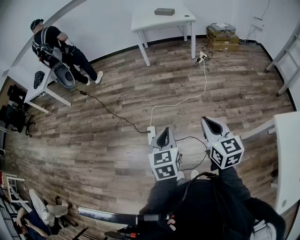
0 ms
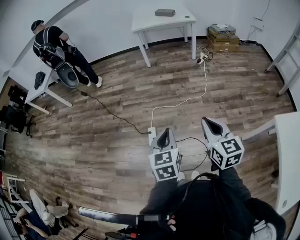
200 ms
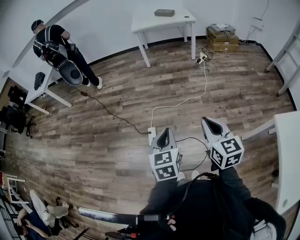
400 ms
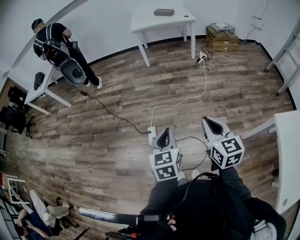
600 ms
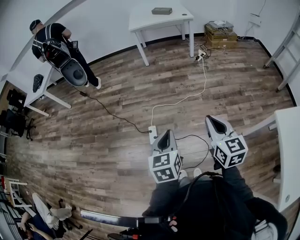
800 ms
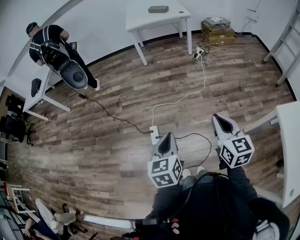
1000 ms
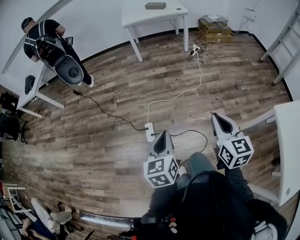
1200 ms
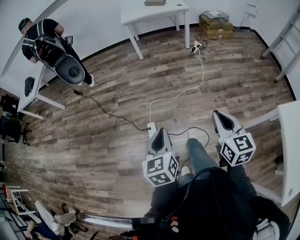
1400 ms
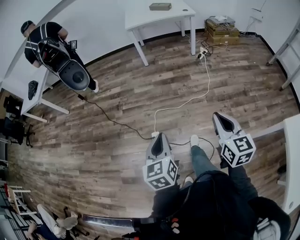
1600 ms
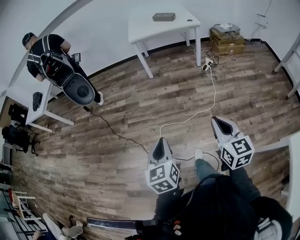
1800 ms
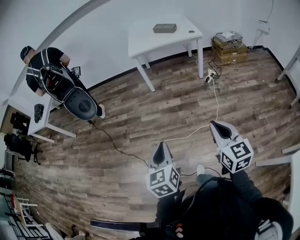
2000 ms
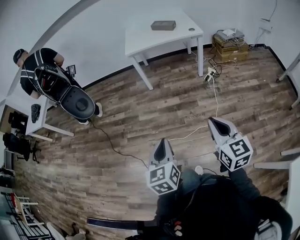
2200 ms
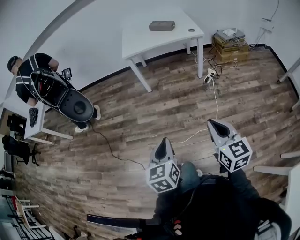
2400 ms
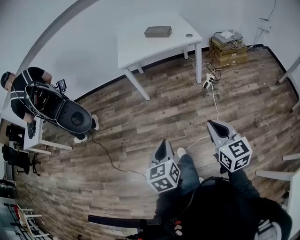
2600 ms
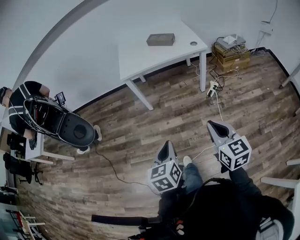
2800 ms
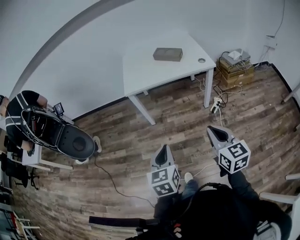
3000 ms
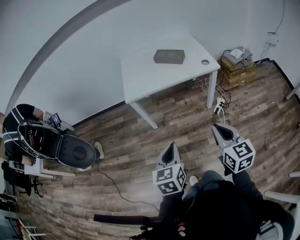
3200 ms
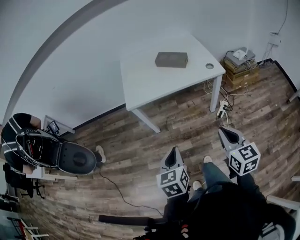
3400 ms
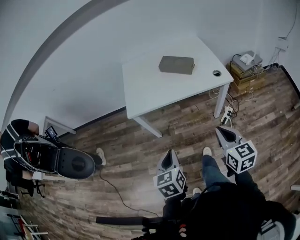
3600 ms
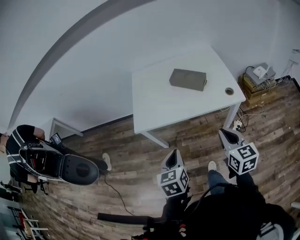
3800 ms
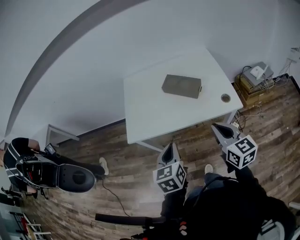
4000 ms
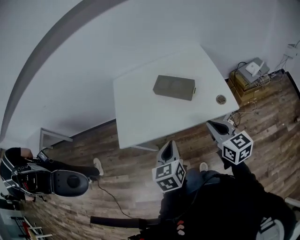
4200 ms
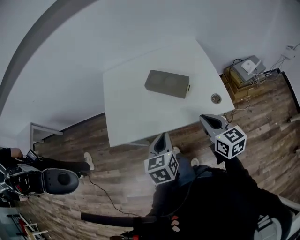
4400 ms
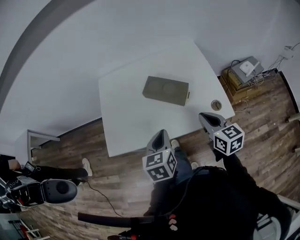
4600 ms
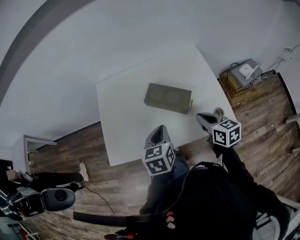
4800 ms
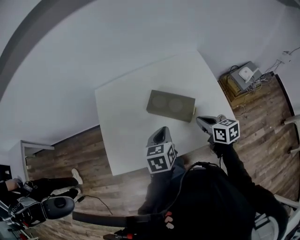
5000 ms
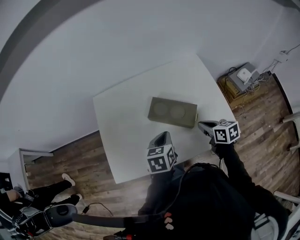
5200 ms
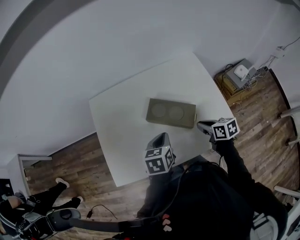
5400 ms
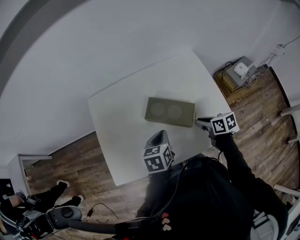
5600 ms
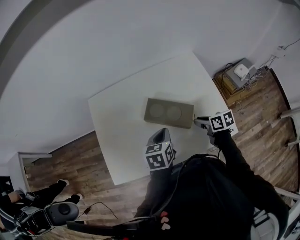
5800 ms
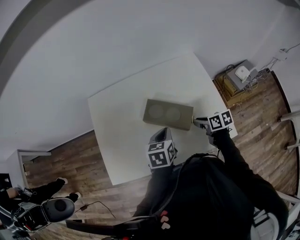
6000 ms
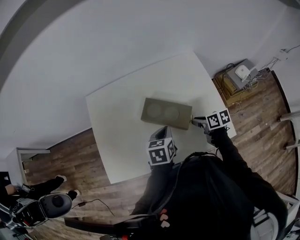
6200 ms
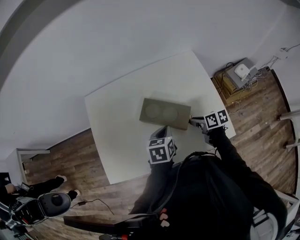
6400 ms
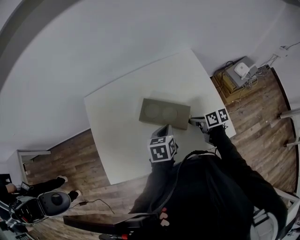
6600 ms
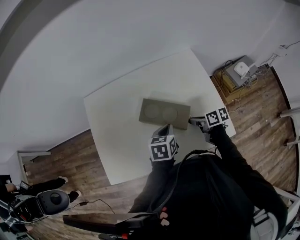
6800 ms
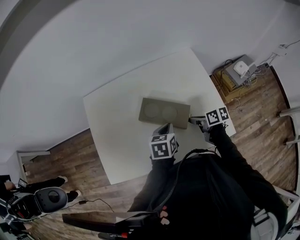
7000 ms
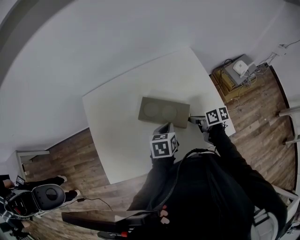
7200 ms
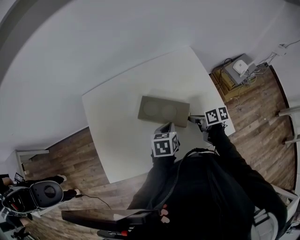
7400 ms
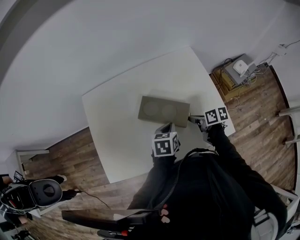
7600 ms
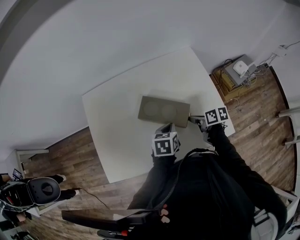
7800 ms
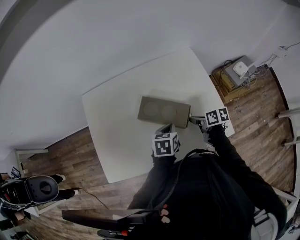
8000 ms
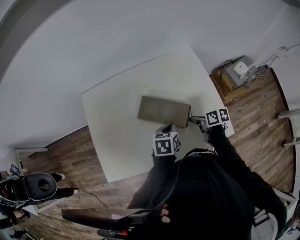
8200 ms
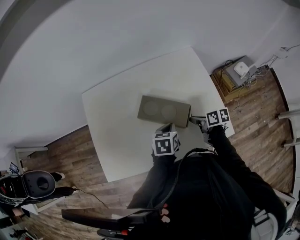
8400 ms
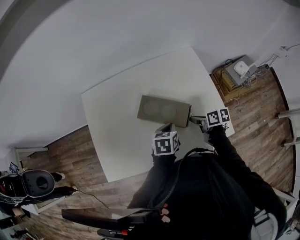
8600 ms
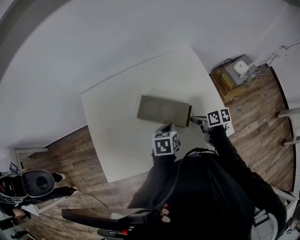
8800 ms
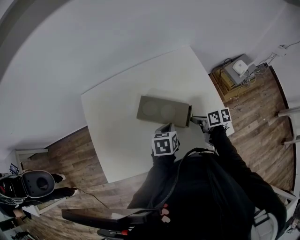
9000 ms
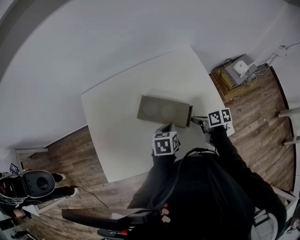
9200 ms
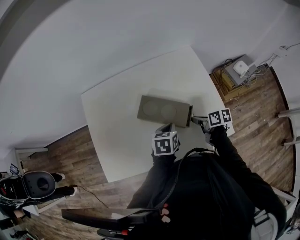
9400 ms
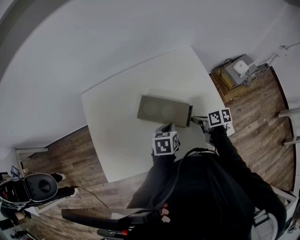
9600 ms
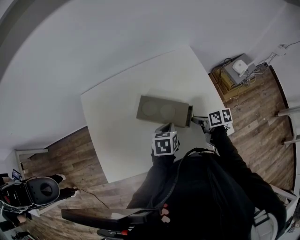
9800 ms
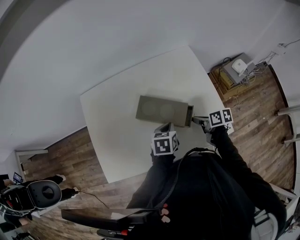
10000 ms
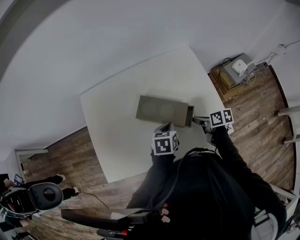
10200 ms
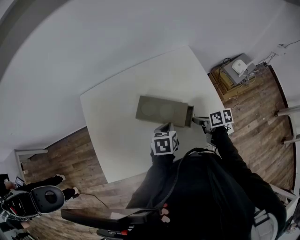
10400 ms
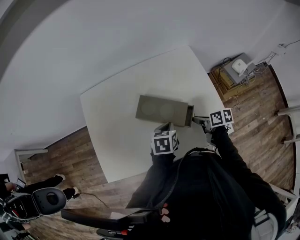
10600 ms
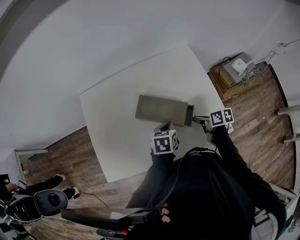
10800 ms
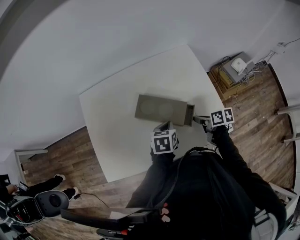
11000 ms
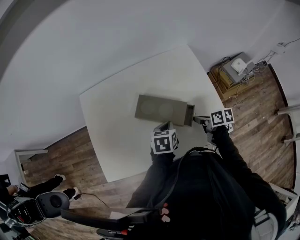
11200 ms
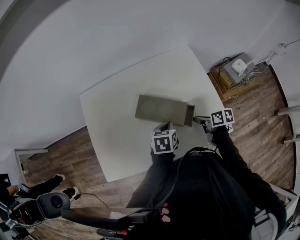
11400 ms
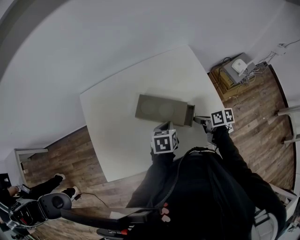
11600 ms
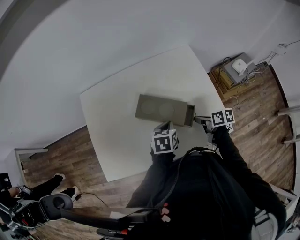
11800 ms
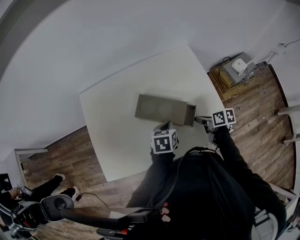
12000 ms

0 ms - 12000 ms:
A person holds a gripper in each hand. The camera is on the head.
0 ms - 1600 ms: The left gripper heads forward and to the left, covering about 15 cm. Meanwhile the right gripper is displaced forward by roughly 15 cm.
1600 ms - 3000 ms: Both grippers are carried forward, about 70 cm.
3000 ms - 4400 ms: The pair of grippers is taken forward, about 60 cm.
4400 ms - 6000 ms: The left gripper moves forward, some 25 cm; the right gripper goes some 25 cm forward and downward, and swivels roughly 40 degrees.
6000 ms - 7600 ms: The left gripper shifts by some 5 cm.
7600 ms - 12000 ms: The grippers stay close to where they were, moving slightly.

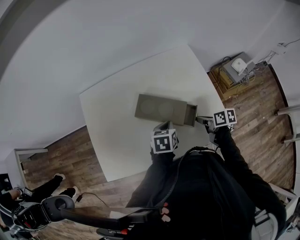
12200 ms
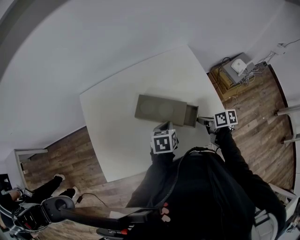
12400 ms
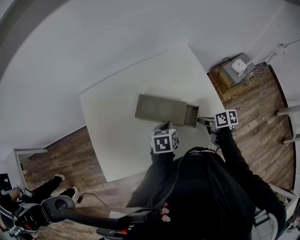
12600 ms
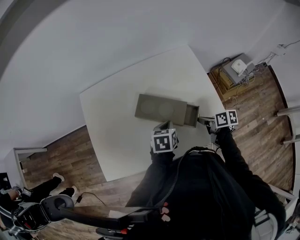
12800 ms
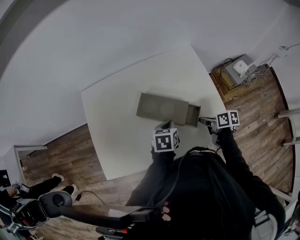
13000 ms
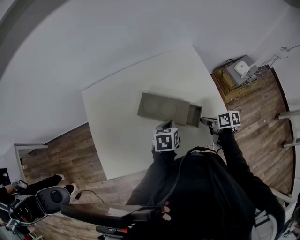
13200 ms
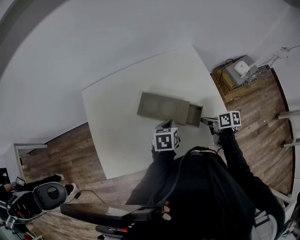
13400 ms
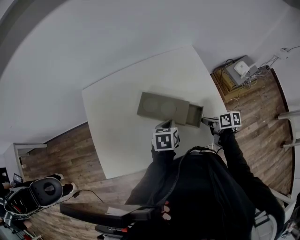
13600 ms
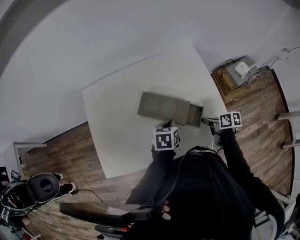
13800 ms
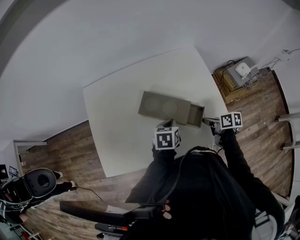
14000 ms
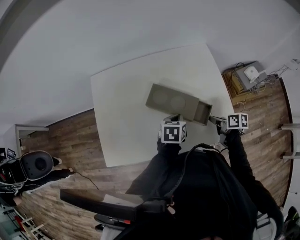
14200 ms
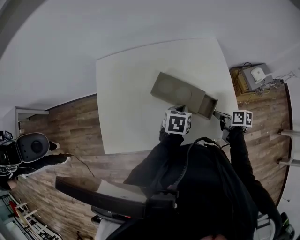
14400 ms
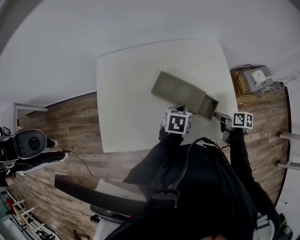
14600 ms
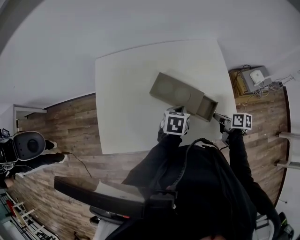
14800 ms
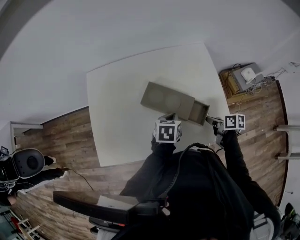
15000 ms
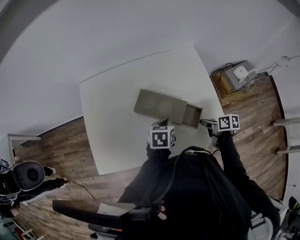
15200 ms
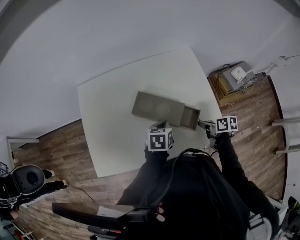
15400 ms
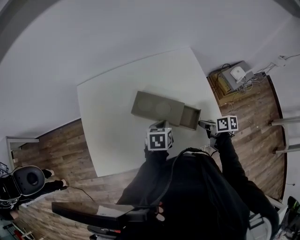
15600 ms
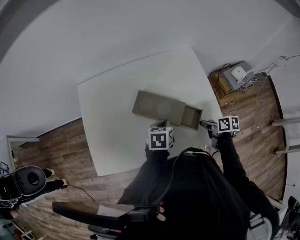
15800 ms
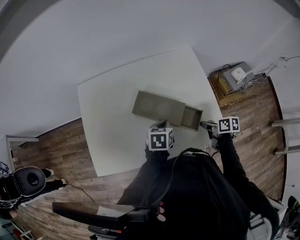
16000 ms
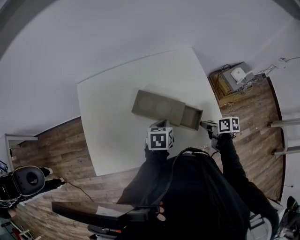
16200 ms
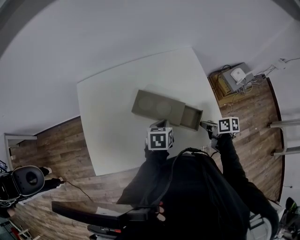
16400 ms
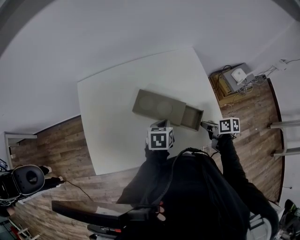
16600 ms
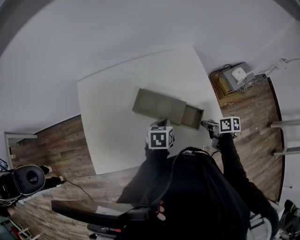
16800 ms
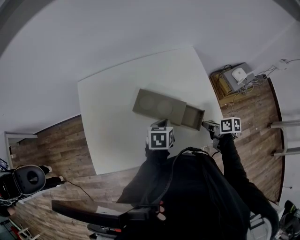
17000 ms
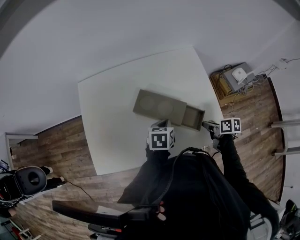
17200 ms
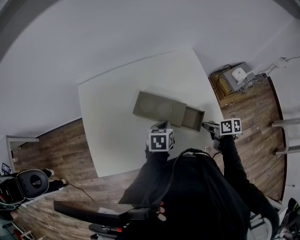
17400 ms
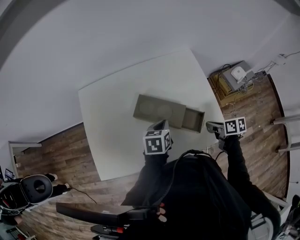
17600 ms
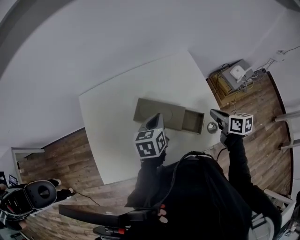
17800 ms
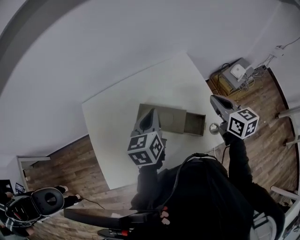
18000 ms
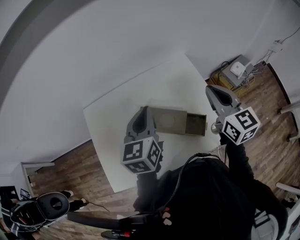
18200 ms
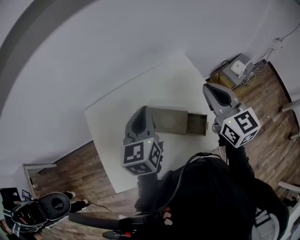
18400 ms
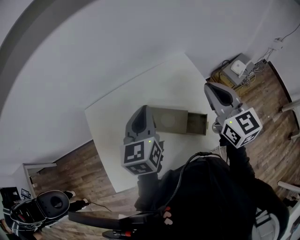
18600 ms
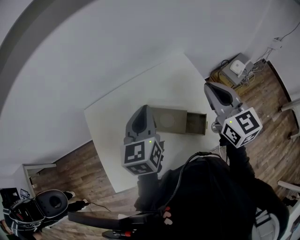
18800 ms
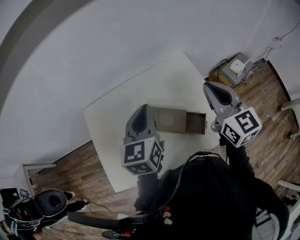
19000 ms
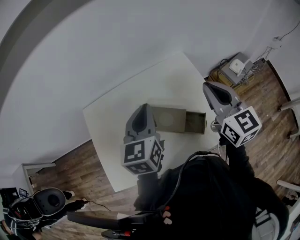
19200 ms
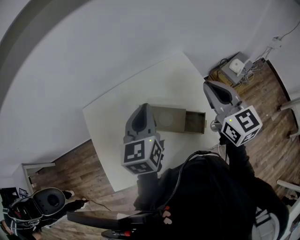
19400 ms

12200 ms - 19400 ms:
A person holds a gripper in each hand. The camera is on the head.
12200 ms - 13600 ms: There are only small adjustments of the grippers.
13600 ms - 15000 ms: Both grippers stay about where they are.
15000 ms - 16600 ms: There are only small adjustments of the grippers.
16600 ms - 18000 ms: Both grippers move upward and forward, about 20 cm. The right gripper changes its angle by approximately 50 degrees, while the left gripper swivels roughly 30 degrees.
18000 ms - 19400 ms: Both grippers move upward, roughly 10 cm. The right gripper changes its angle by roughly 20 degrees.

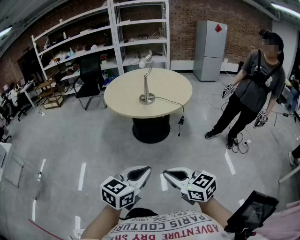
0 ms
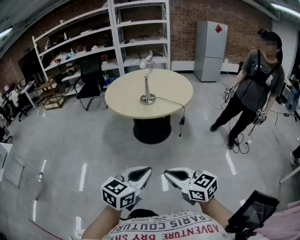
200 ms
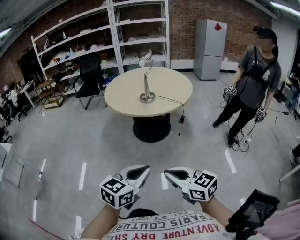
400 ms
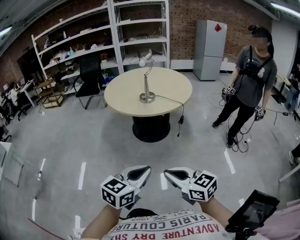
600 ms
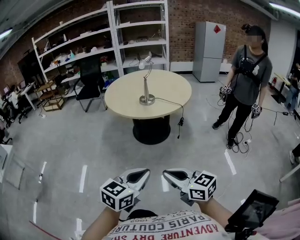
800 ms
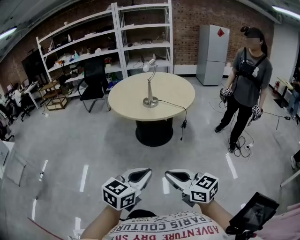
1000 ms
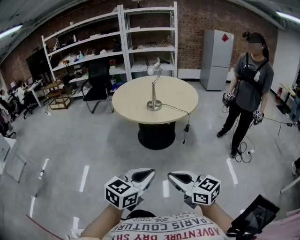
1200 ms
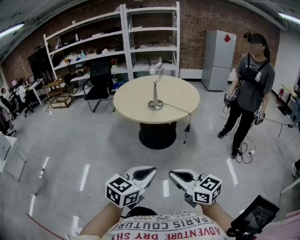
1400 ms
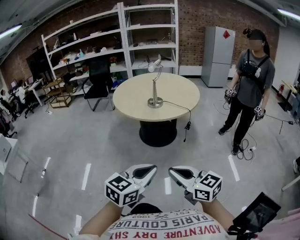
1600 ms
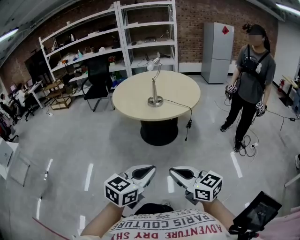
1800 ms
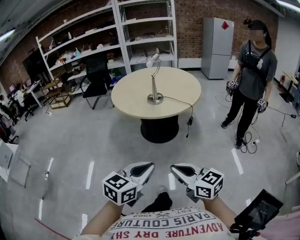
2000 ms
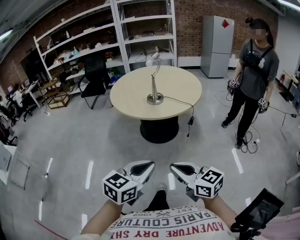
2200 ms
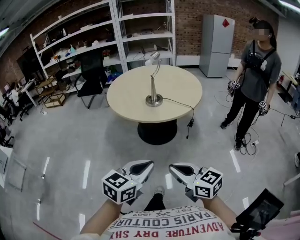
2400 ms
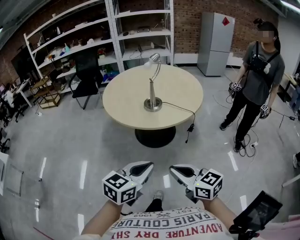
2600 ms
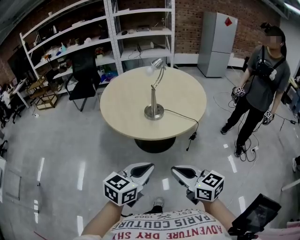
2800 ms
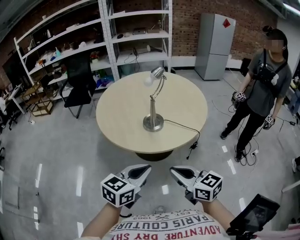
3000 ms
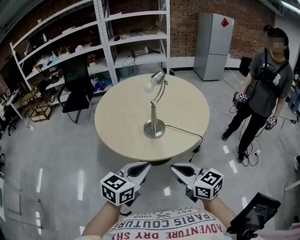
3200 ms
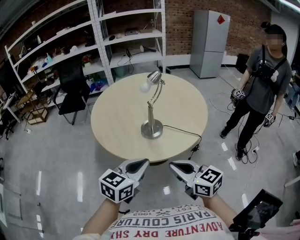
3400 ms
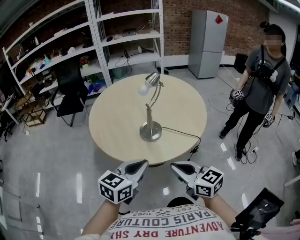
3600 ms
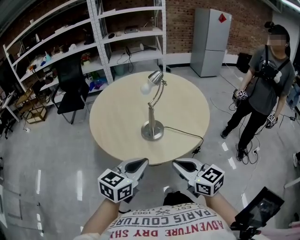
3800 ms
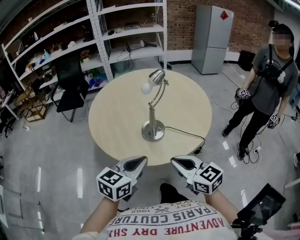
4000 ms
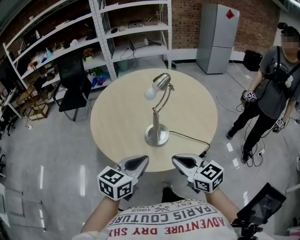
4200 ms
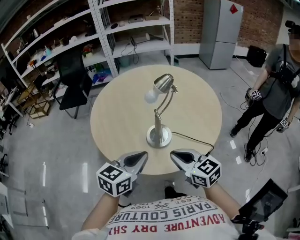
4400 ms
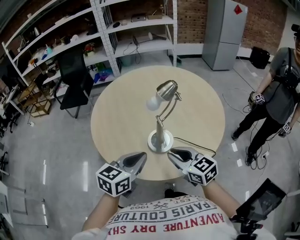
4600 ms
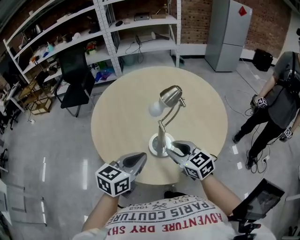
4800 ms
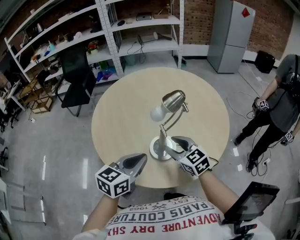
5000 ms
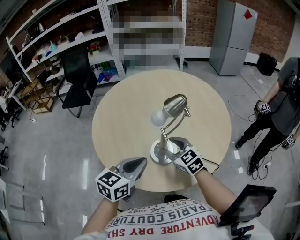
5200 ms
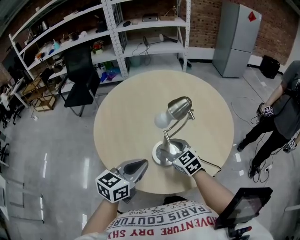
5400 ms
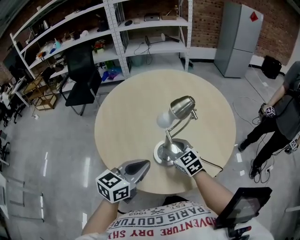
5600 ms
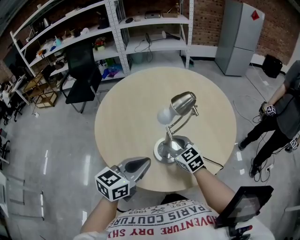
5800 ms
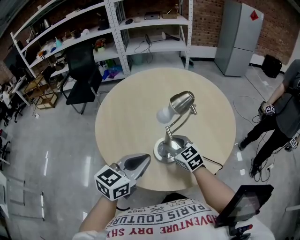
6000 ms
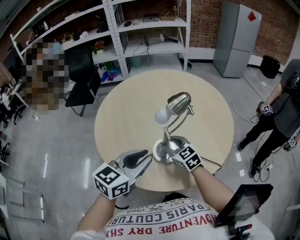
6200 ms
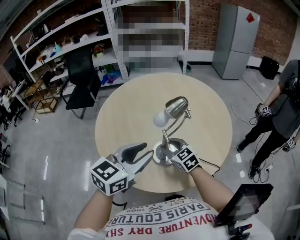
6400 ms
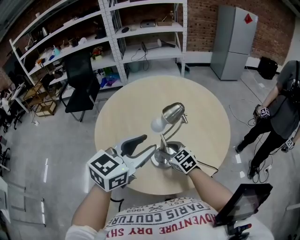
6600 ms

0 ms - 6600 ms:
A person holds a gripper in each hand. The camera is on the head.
0 ms - 1600 ms: The grippers move only a little.
1600 ms - 3200 ms: The grippers both shift forward by roughly 40 cm.
3200 ms - 5000 ms: The grippers both shift forward by approximately 25 cm. The right gripper opens.
5000 ms - 6600 ms: The left gripper goes roughly 10 cm upward, and opens its fingers. Meanwhile the right gripper moves downward, some 5 cm.
